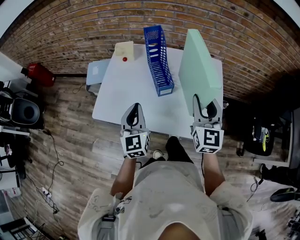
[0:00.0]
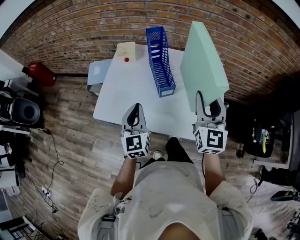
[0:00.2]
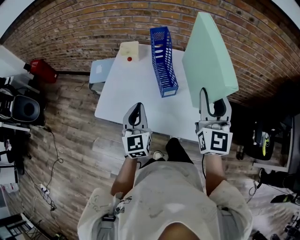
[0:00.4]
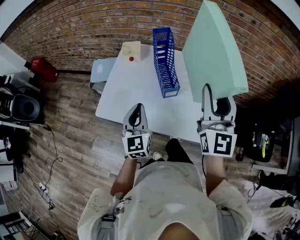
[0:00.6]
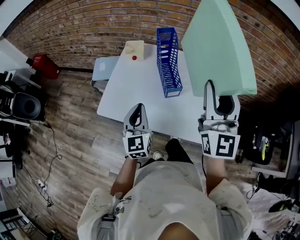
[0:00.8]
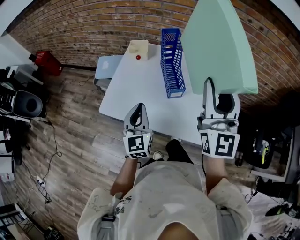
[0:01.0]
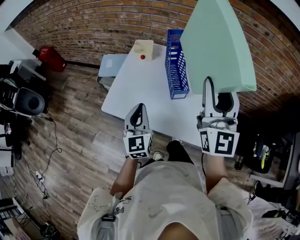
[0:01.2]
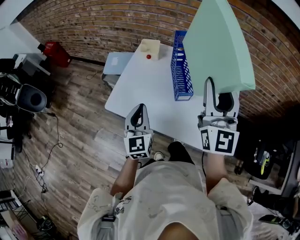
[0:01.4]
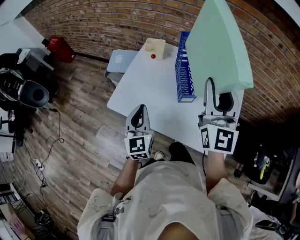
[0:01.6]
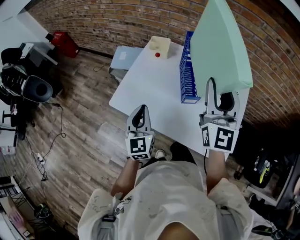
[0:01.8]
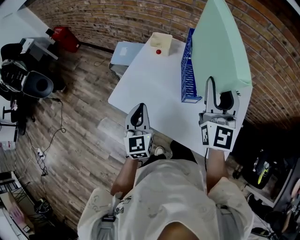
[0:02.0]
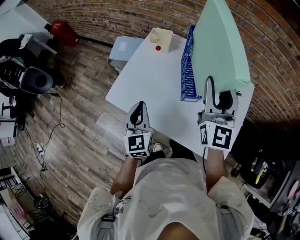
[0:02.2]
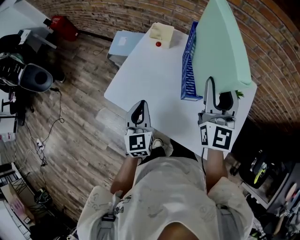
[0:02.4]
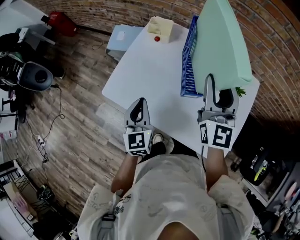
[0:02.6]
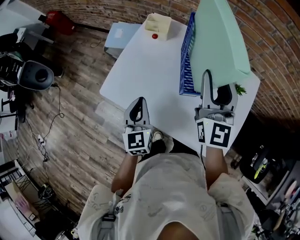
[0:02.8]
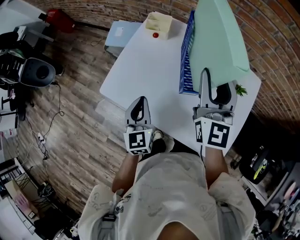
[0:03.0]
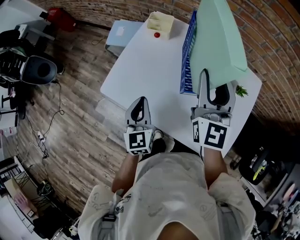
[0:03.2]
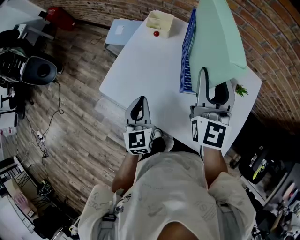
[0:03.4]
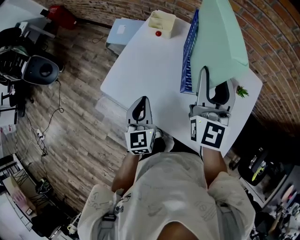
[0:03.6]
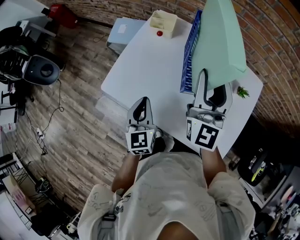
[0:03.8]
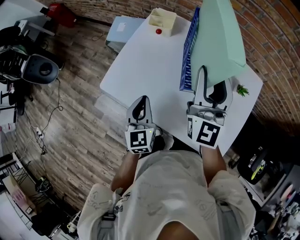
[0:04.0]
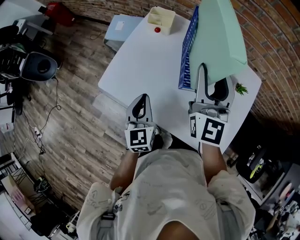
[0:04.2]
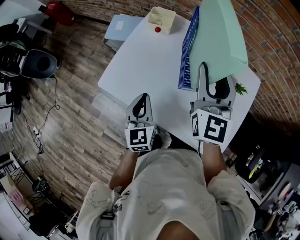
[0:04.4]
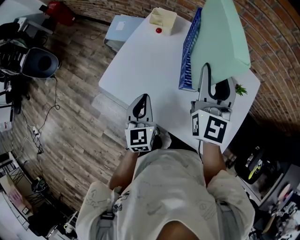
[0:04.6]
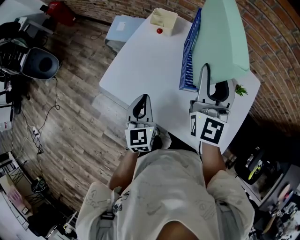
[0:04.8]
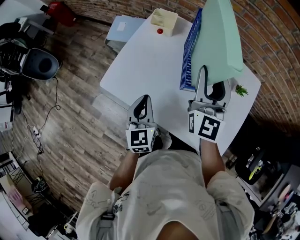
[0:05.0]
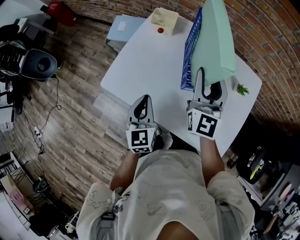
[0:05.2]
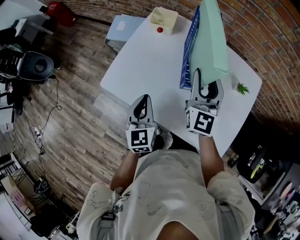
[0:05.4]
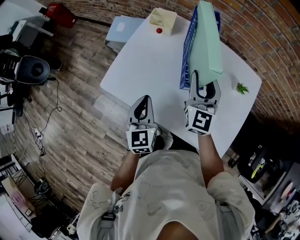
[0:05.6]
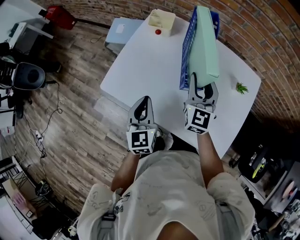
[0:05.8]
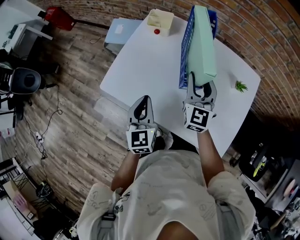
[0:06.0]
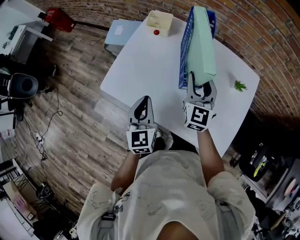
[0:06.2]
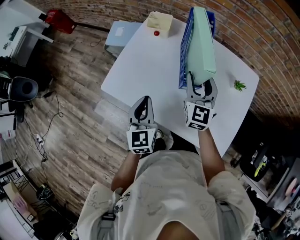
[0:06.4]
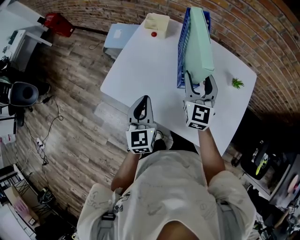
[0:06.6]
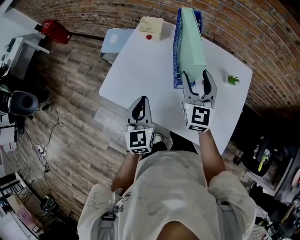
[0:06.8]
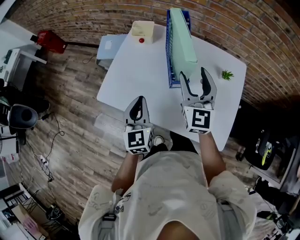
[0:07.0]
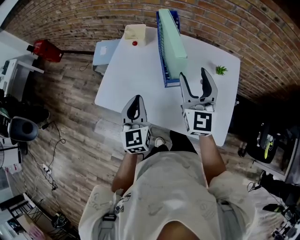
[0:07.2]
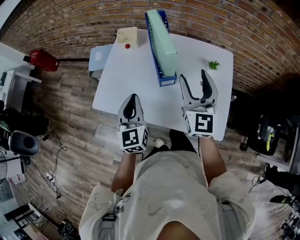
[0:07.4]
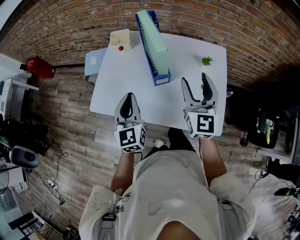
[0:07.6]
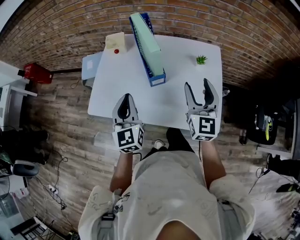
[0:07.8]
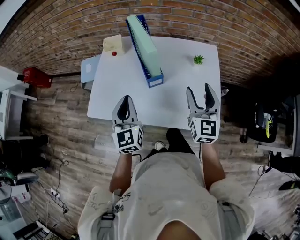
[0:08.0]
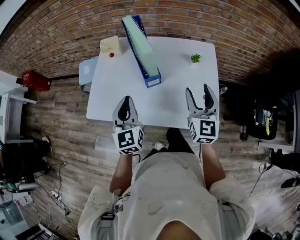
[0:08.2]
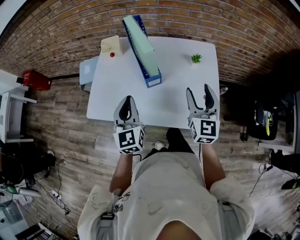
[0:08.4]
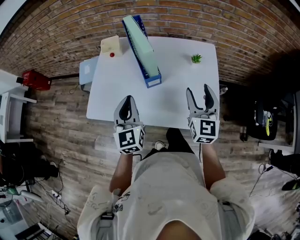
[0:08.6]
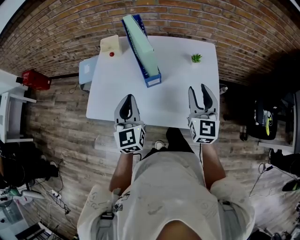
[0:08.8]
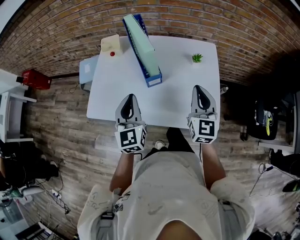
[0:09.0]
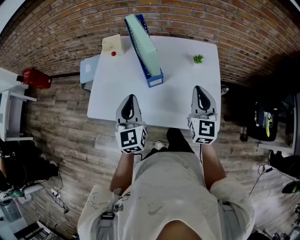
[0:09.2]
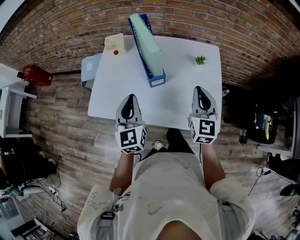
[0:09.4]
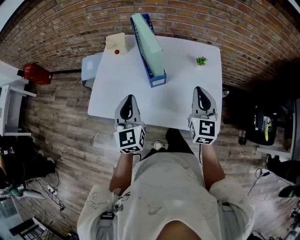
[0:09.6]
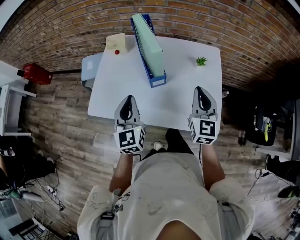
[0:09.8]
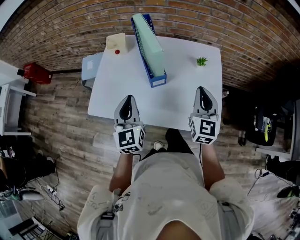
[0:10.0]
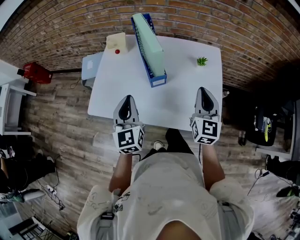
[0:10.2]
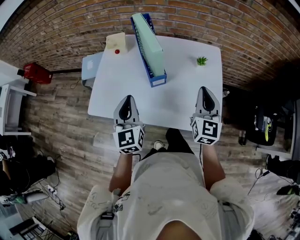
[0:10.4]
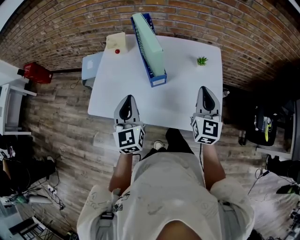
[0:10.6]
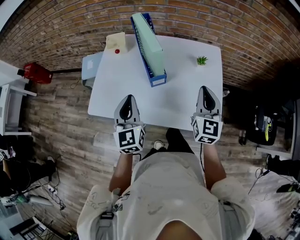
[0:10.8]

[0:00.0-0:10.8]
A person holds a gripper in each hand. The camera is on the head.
0:00.0 to 0:01.6: The right gripper is displaced upward, to the left and forward by roughly 15 cm, and turns by about 20 degrees, while the left gripper is displaced to the left by roughly 5 cm.
0:01.6 to 0:03.0: The right gripper is displaced forward and downward by some 15 cm. Meanwhile the left gripper travels downward by about 5 cm.
0:03.0 to 0:04.6: There are only small adjustments of the grippers.
0:04.6 to 0:06.2: The right gripper is displaced downward by roughly 10 cm.
0:06.2 to 0:07.8: The left gripper is displaced upward by roughly 10 cm, while the right gripper travels backward, to the right and upward by roughly 20 cm.
0:07.8 to 0:09.2: The right gripper closes up.
0:09.2 to 0:10.8: The grippers make only small movements.

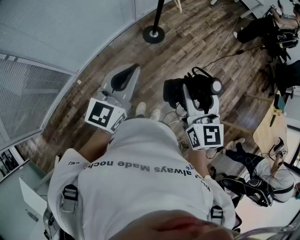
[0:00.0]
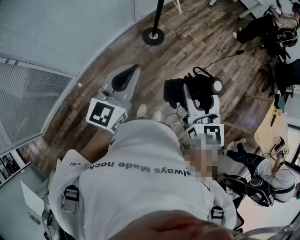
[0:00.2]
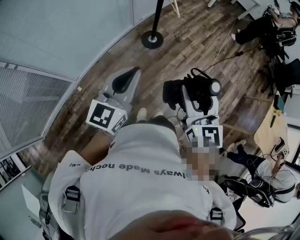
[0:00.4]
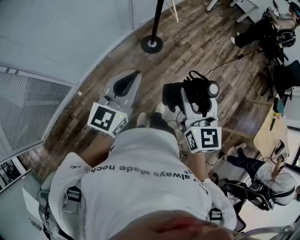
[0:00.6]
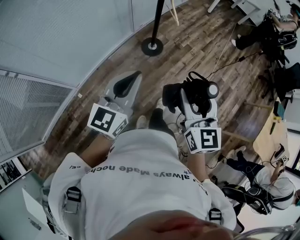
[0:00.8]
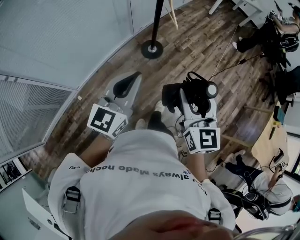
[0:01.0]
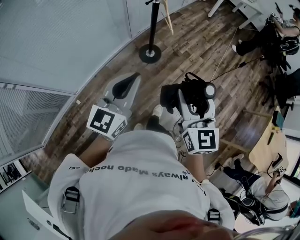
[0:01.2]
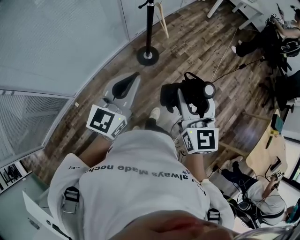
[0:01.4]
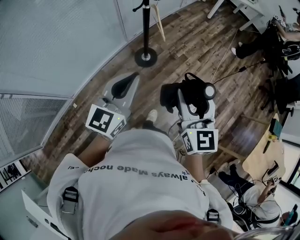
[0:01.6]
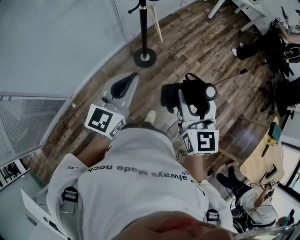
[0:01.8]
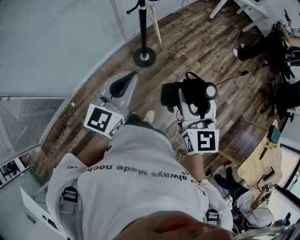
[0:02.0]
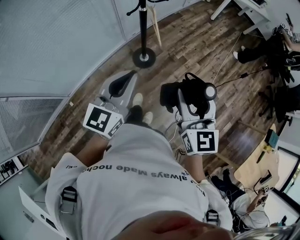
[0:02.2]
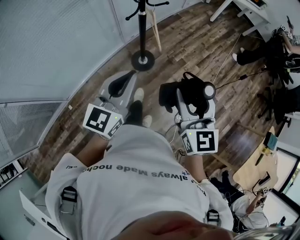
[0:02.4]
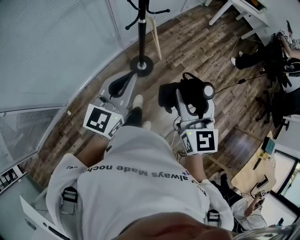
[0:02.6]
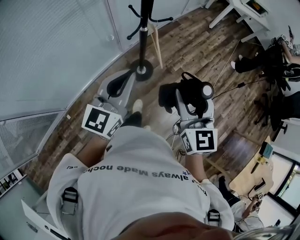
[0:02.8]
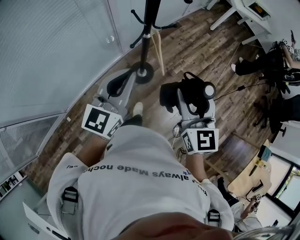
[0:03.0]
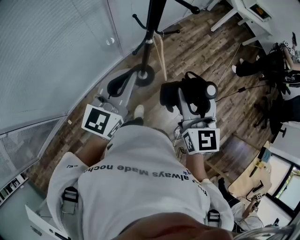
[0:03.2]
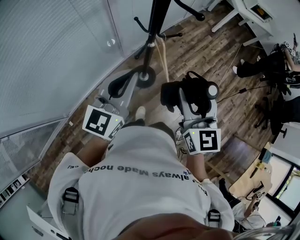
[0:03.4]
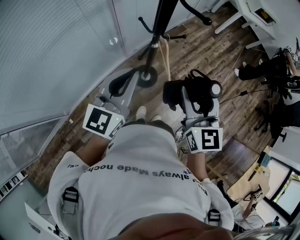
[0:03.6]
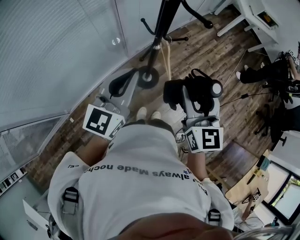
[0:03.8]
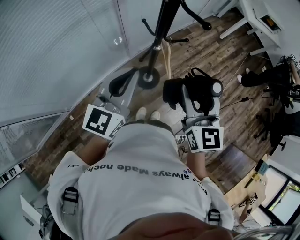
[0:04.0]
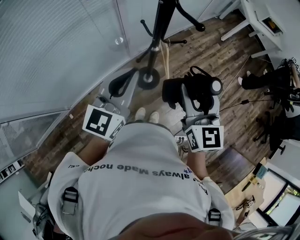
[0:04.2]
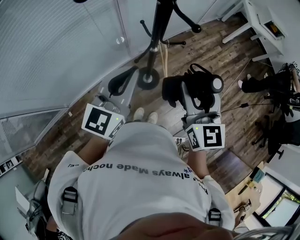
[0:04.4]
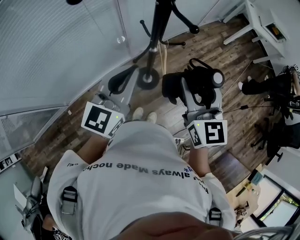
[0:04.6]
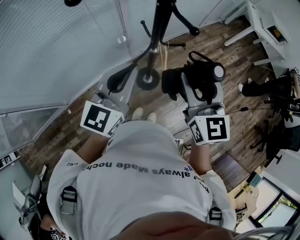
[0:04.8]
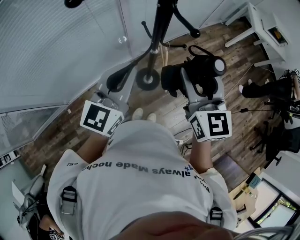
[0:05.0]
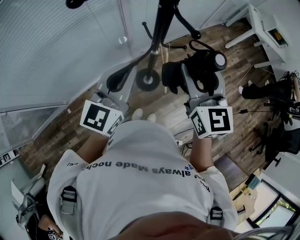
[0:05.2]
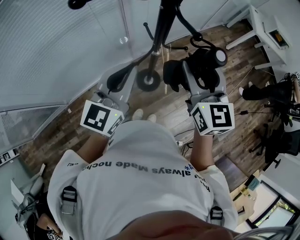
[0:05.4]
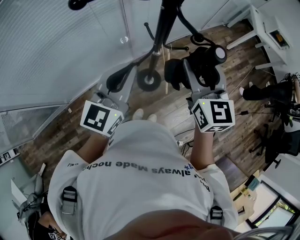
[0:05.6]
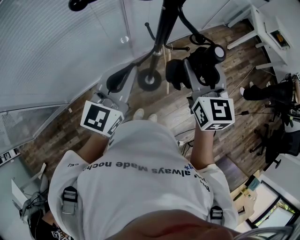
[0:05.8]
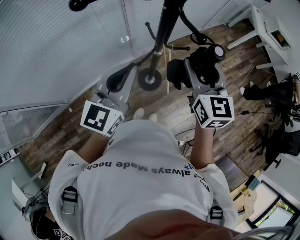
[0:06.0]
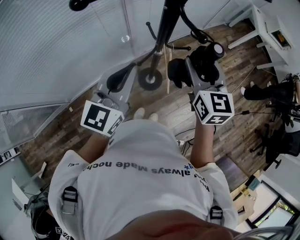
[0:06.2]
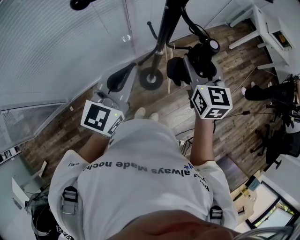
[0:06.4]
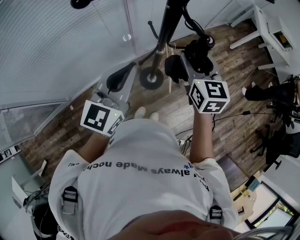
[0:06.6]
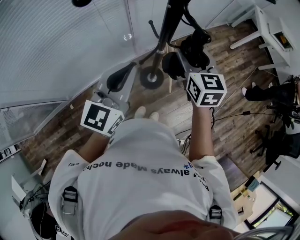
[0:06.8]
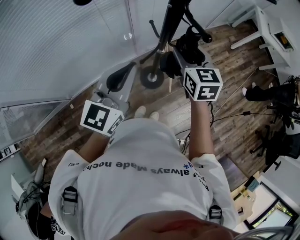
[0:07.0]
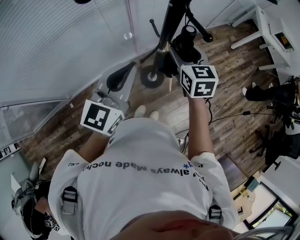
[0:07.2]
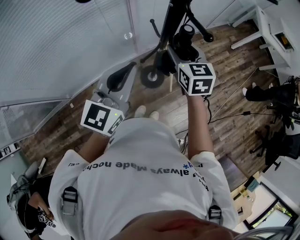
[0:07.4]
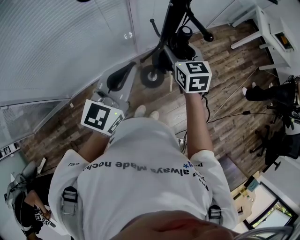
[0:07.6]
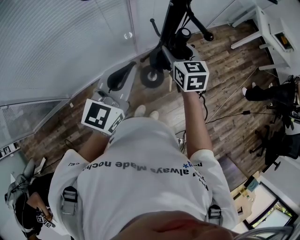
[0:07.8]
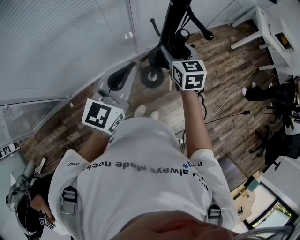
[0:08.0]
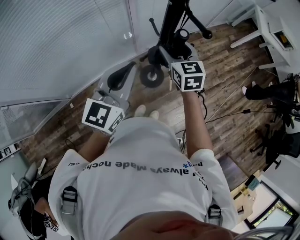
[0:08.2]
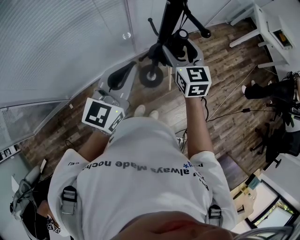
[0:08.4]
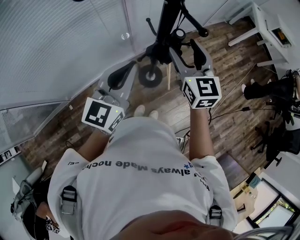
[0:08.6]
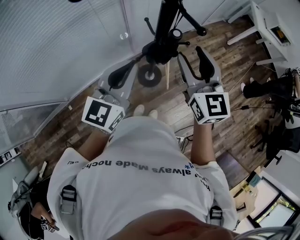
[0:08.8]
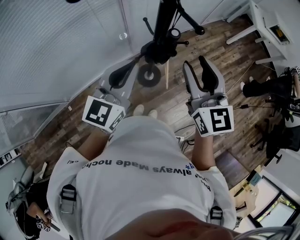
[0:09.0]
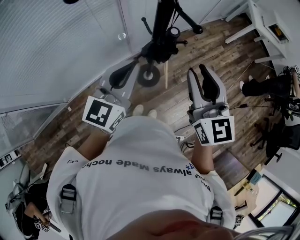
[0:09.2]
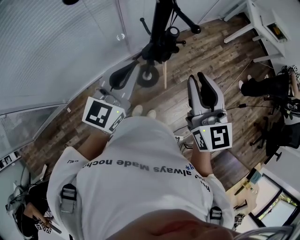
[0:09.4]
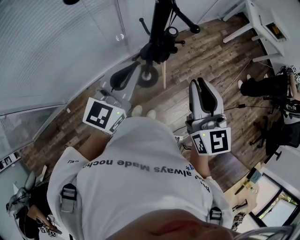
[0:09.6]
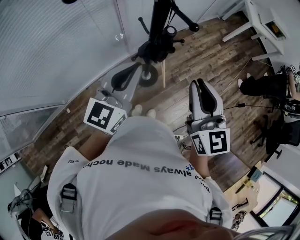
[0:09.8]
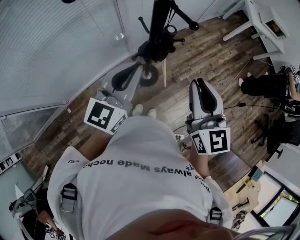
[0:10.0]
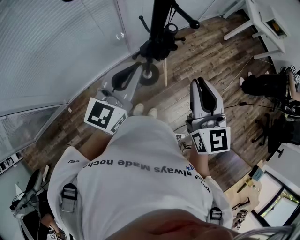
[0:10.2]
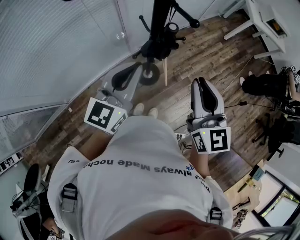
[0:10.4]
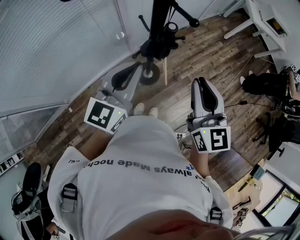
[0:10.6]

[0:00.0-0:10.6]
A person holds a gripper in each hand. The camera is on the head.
0:00.0 to 0:01.6: Both grippers travel together forward and to the right, approximately 30 cm.
0:01.6 to 0:03.0: Both grippers move forward, some 35 cm.
0:03.0 to 0:04.6: Both grippers move forward, some 10 cm.
0:04.6 to 0:06.0: The right gripper moves forward, about 10 cm.
0:06.0 to 0:07.6: The right gripper shifts about 15 cm downward, to the left and forward.
0:07.6 to 0:09.0: The right gripper is displaced upward, backward and to the right by about 15 cm, and turns by about 20 degrees.
0:09.0 to 0:10.6: The right gripper is displaced backward by roughly 5 cm, and closes up.

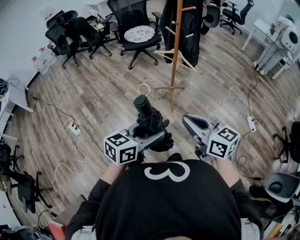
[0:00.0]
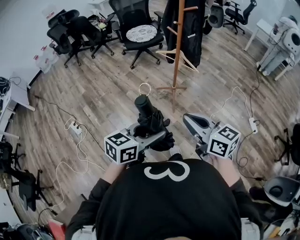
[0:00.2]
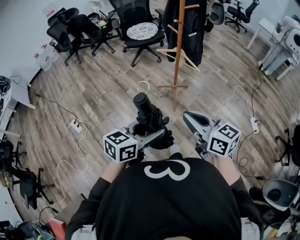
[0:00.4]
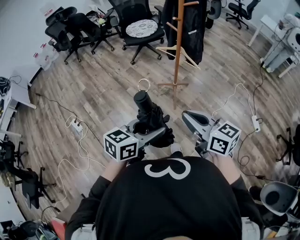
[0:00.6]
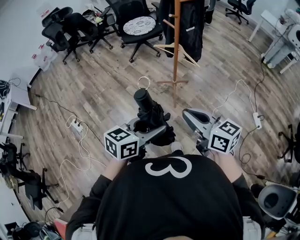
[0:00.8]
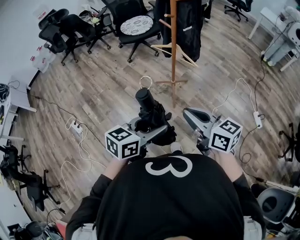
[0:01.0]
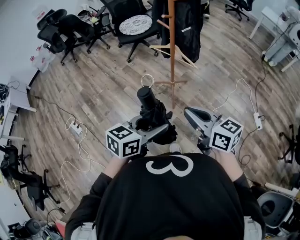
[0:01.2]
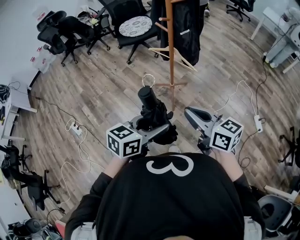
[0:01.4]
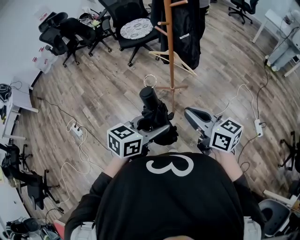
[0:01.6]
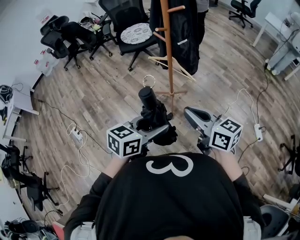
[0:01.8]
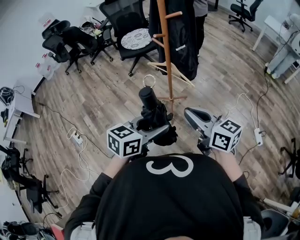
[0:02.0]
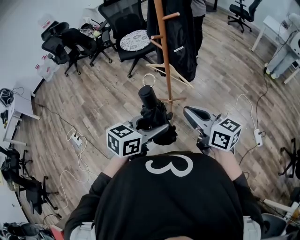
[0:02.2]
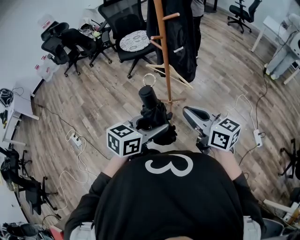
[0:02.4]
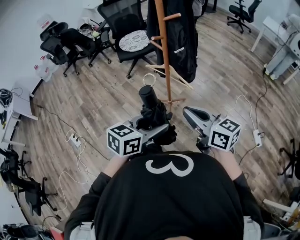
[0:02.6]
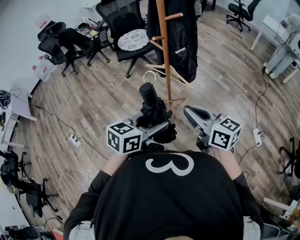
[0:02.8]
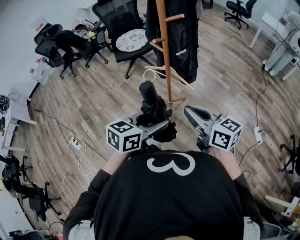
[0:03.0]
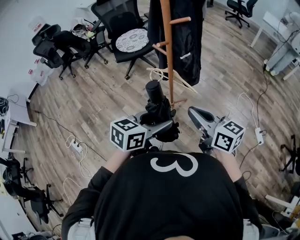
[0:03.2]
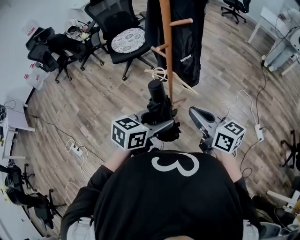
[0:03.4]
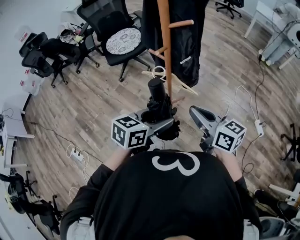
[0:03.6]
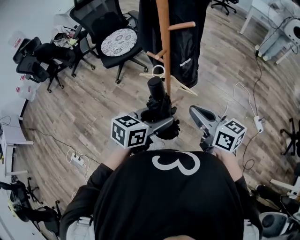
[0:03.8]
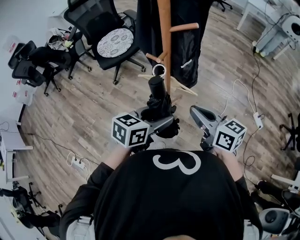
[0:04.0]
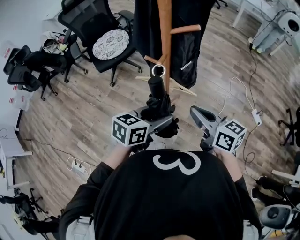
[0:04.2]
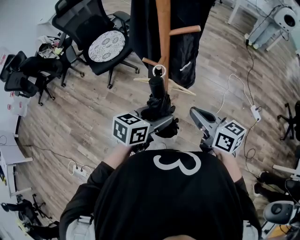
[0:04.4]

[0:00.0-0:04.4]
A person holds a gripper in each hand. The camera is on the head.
0:00.0 to 0:01.4: The grippers both shift forward and to the right by approximately 20 cm.
0:01.4 to 0:03.0: Both grippers travel together forward, roughly 15 cm.
0:03.0 to 0:04.4: The grippers both shift forward and to the left by approximately 20 cm. The right gripper turns by some 20 degrees.
